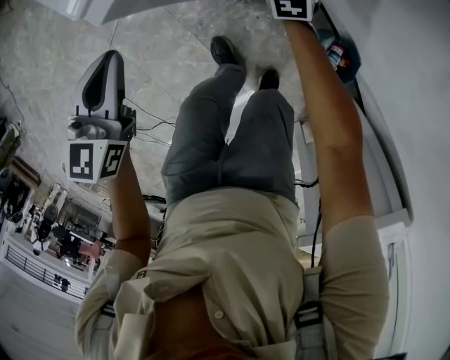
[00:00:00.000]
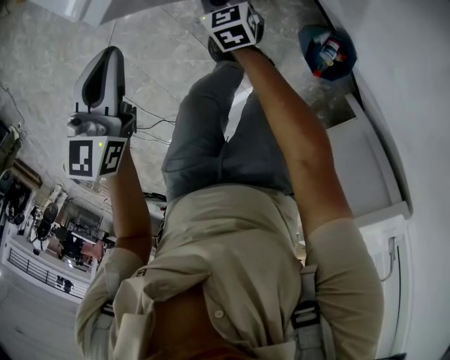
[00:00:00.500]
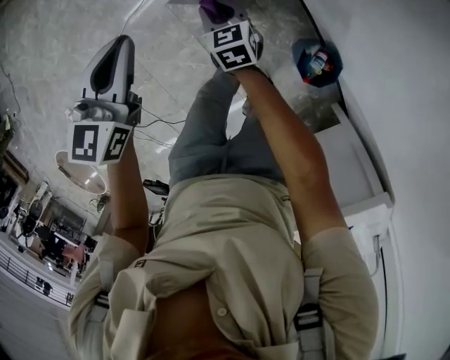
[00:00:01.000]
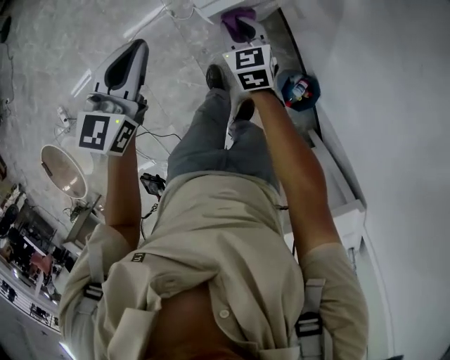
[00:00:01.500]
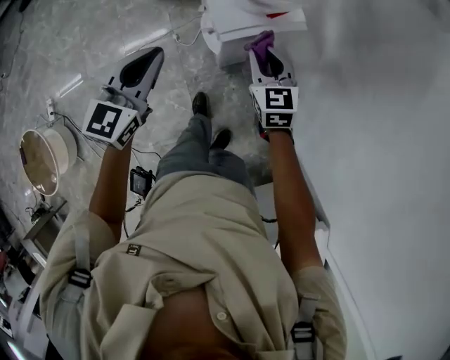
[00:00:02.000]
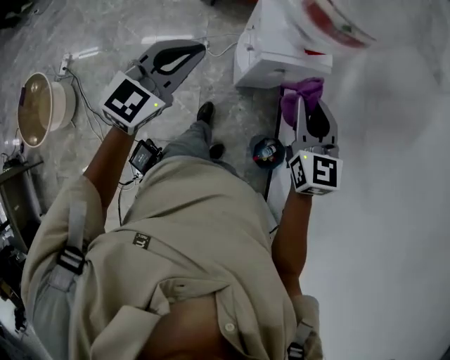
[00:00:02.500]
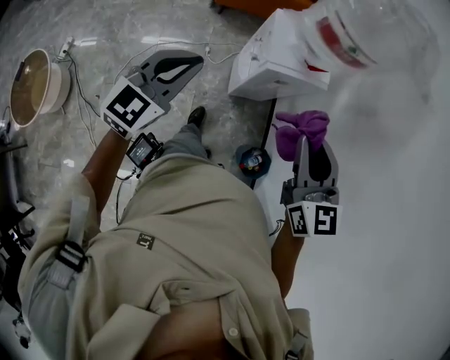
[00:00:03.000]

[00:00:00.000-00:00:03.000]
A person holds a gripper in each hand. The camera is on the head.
00:00:00.000 to 00:00:01.500: The right gripper goes some 30 cm upward and to the left. Meanwhile the left gripper is displaced upward by some 20 cm.
00:00:01.500 to 00:00:03.000: The right gripper goes roughly 50 cm upward and backward, and turns by about 20 degrees, while the left gripper is displaced upward, backward and to the left by approximately 25 cm.

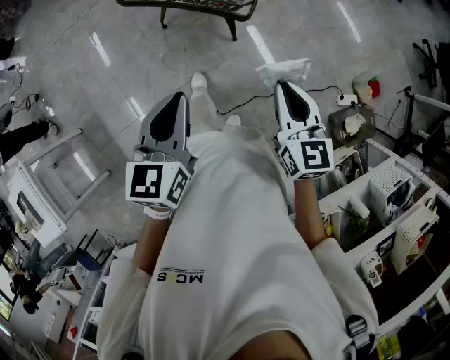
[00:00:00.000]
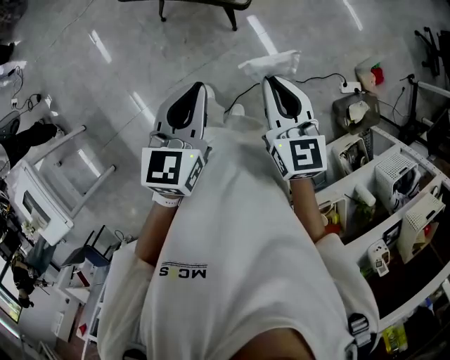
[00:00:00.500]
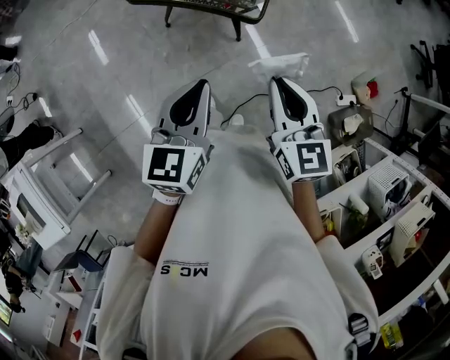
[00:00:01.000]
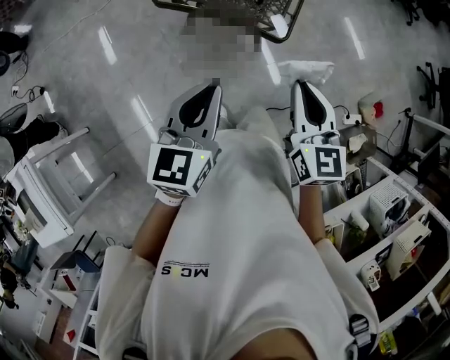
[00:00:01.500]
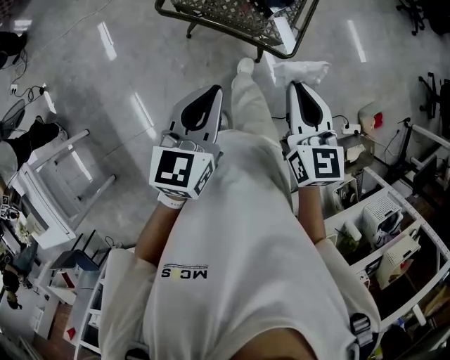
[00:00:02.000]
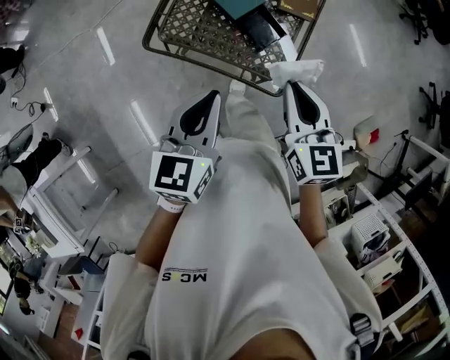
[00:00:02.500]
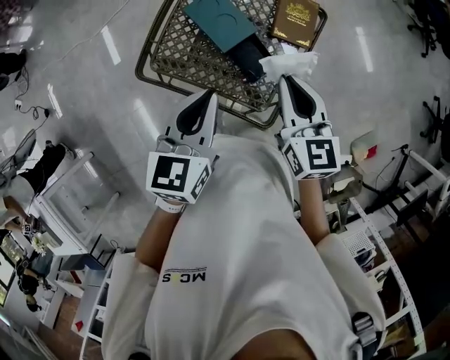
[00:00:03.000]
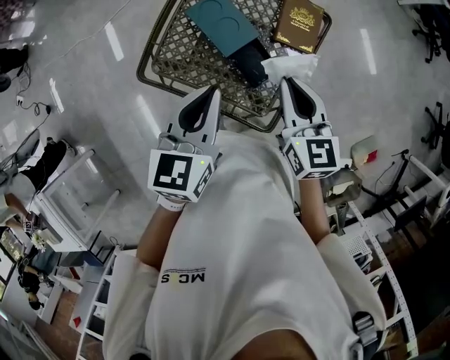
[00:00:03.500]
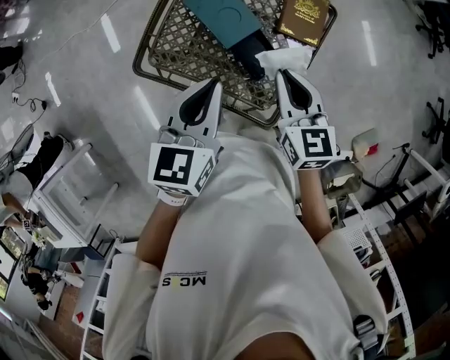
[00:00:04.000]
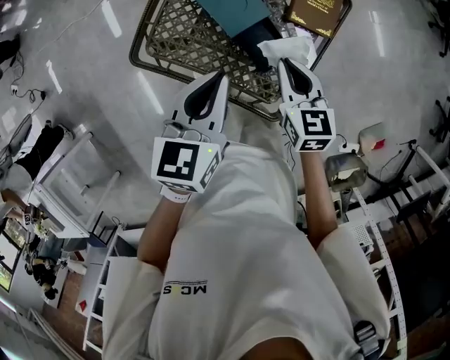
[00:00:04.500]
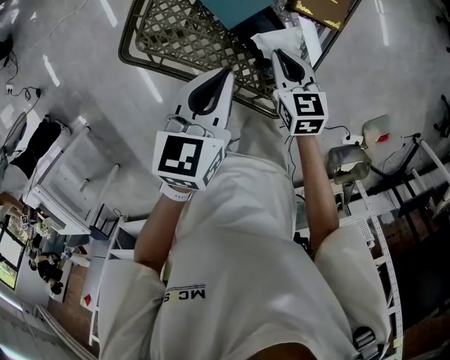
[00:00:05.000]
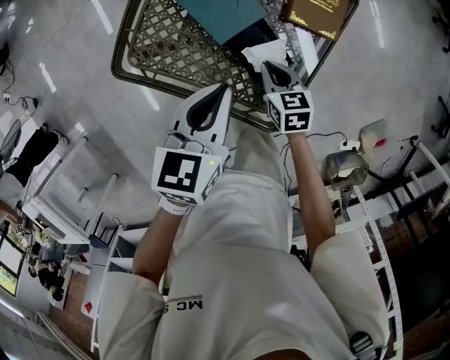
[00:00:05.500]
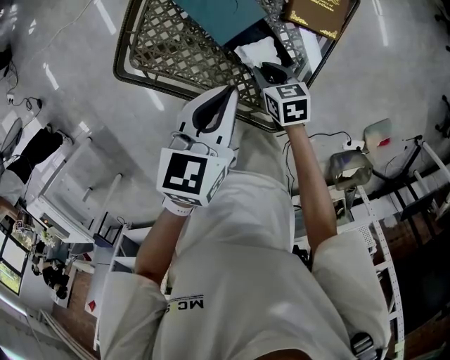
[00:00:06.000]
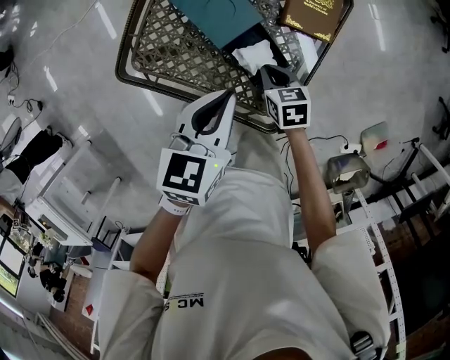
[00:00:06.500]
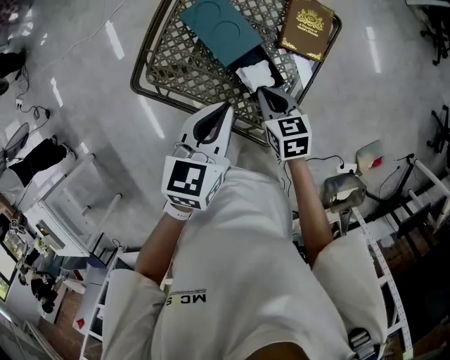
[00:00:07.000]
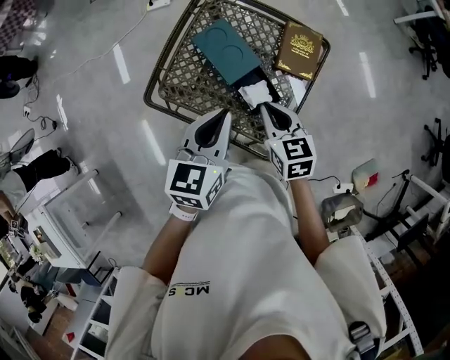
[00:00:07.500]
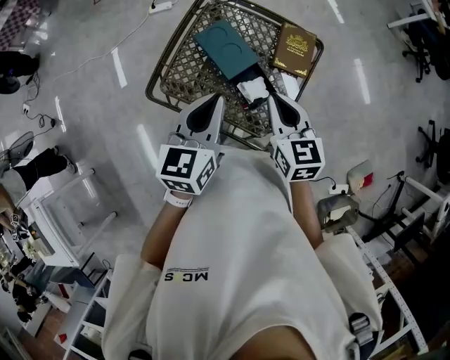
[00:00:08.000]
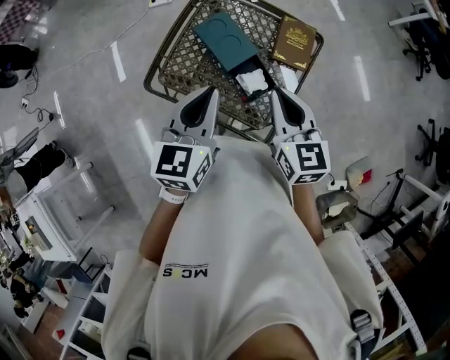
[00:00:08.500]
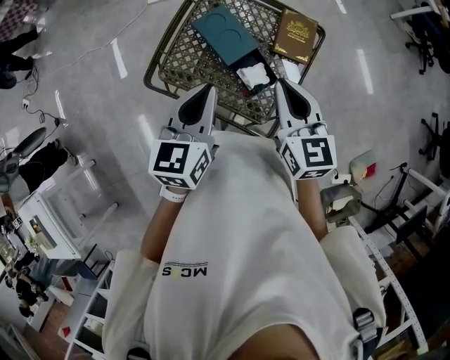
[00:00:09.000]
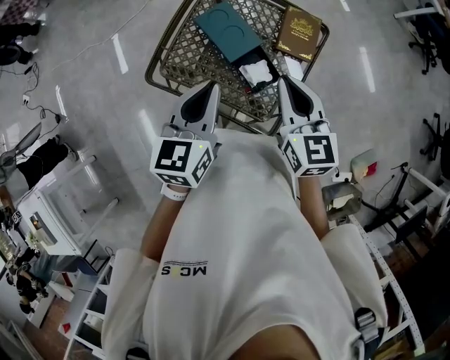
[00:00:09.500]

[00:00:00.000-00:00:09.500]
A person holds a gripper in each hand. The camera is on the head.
00:00:00.000 to 00:00:02.000: Both grippers move forward and to the left, roughly 20 cm.
00:00:02.000 to 00:00:04.000: Both grippers move forward, roughly 35 cm.
00:00:04.000 to 00:00:05.500: The left gripper goes roughly 10 cm downward. Meanwhile the right gripper is displaced downward by some 25 cm, and swivels about 20 degrees.
00:00:05.500 to 00:00:07.500: The right gripper moves upward, roughly 20 cm; the left gripper heads upward, covering approximately 10 cm.
00:00:07.500 to 00:00:09.500: The right gripper is displaced upward by approximately 10 cm.

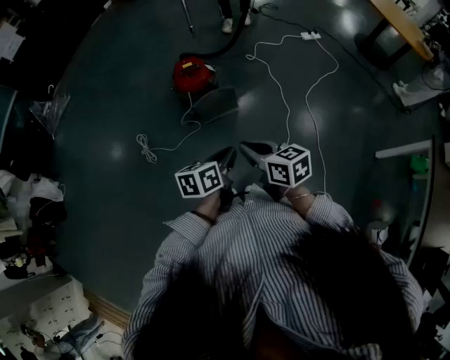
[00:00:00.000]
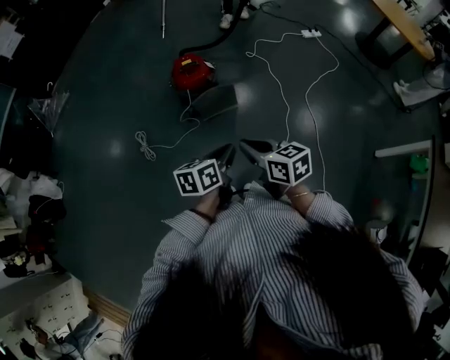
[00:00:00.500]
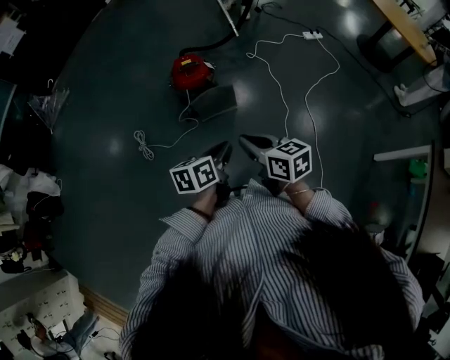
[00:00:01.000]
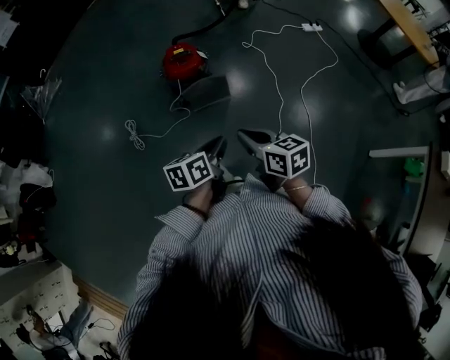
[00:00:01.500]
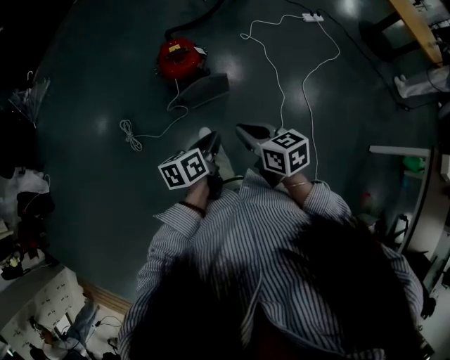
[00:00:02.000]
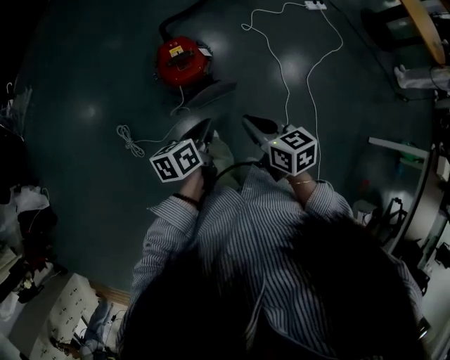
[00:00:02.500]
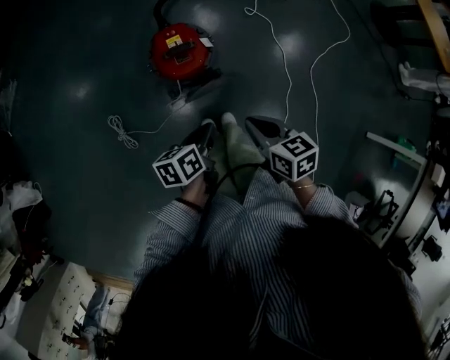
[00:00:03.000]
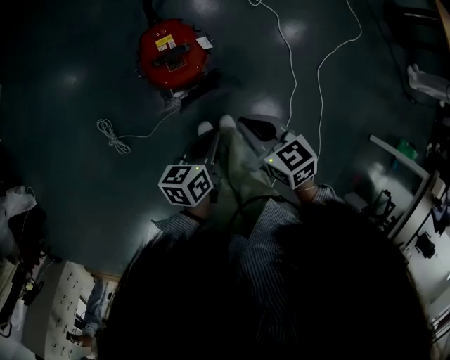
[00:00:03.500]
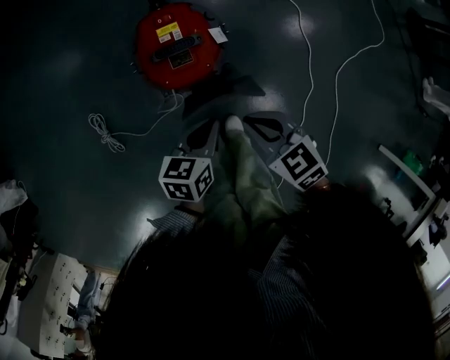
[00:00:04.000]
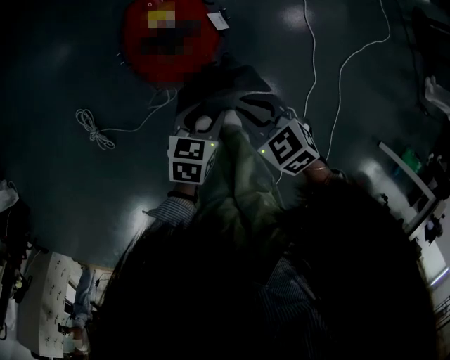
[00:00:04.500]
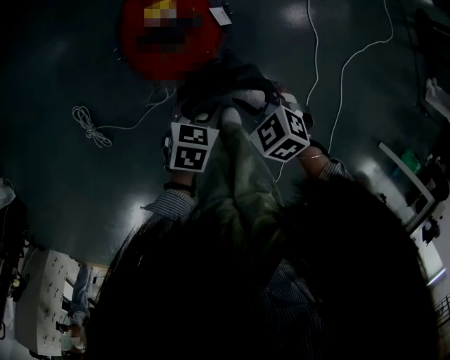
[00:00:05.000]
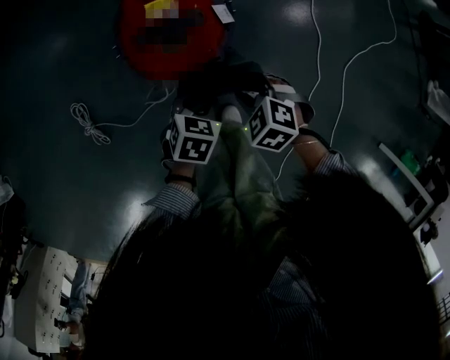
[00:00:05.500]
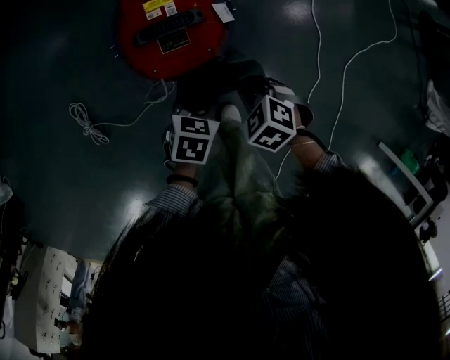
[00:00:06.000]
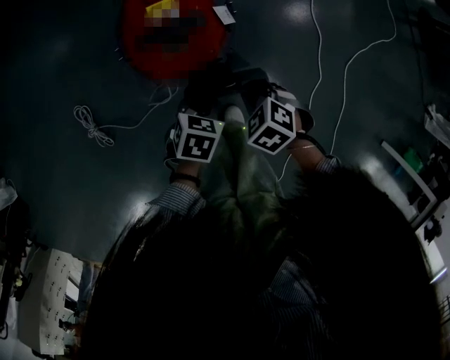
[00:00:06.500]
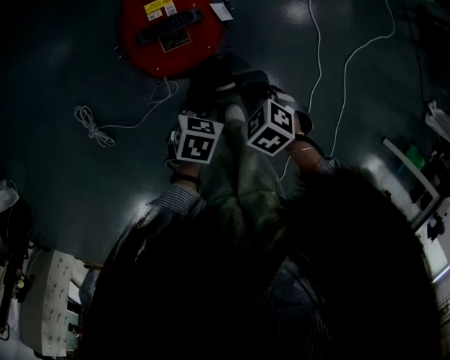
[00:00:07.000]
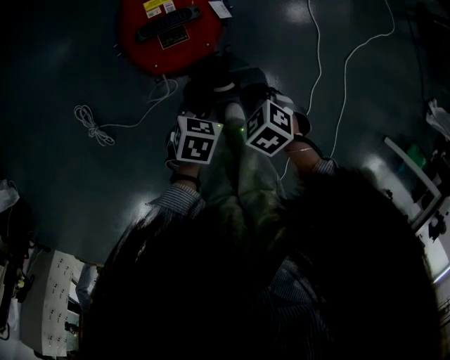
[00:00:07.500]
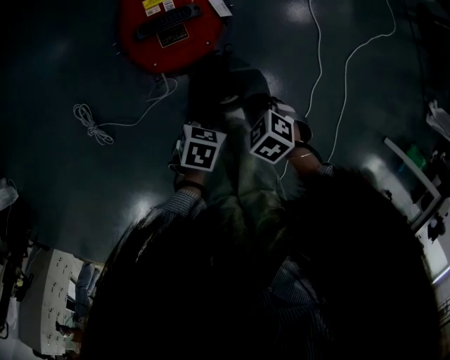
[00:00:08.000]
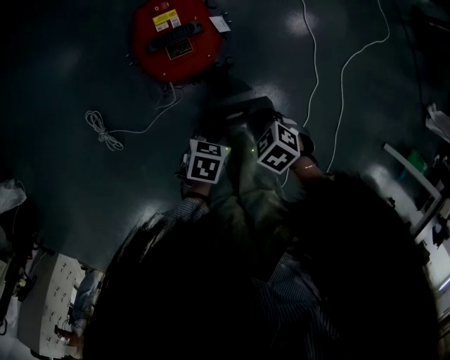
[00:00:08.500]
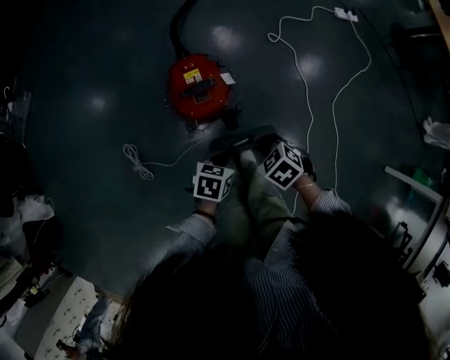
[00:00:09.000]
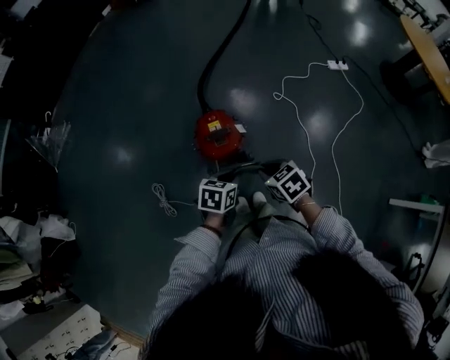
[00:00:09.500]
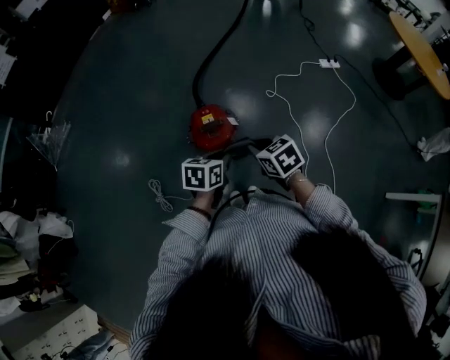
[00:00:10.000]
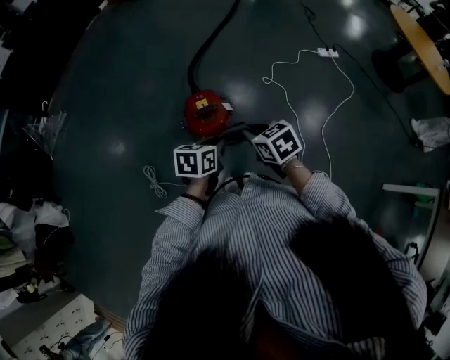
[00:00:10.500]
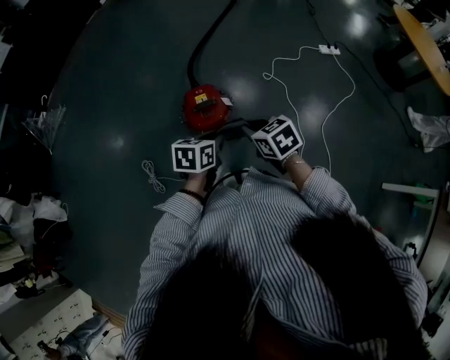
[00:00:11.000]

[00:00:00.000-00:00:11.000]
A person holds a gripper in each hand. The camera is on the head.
00:00:00.000 to 00:00:02.000: The right gripper moves forward, roughly 10 cm, while the left gripper heads forward and downward, covering about 10 cm.
00:00:02.000 to 00:00:03.500: Both grippers travel together forward and downward, some 30 cm.
00:00:03.500 to 00:00:05.500: Both grippers travel together downward, some 30 cm. The right gripper tilts its fingers roughly 30 degrees downward, and opens its fingers. The left gripper changes its angle by about 40 degrees, and opens up.
00:00:05.500 to 00:00:07.500: The left gripper closes its fingers. Meanwhile the right gripper closes up.
00:00:07.500 to 00:00:09.000: The grippers both shift upward by about 20 cm.
00:00:09.000 to 00:00:11.000: The two grippers go approximately 25 cm upward. The right gripper swivels about 30 degrees.

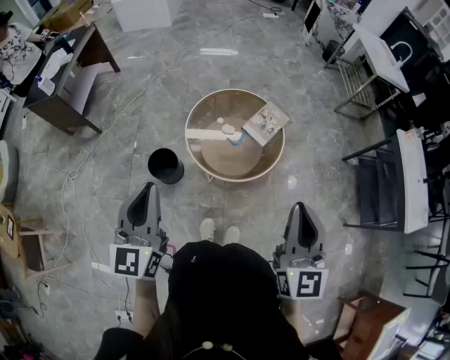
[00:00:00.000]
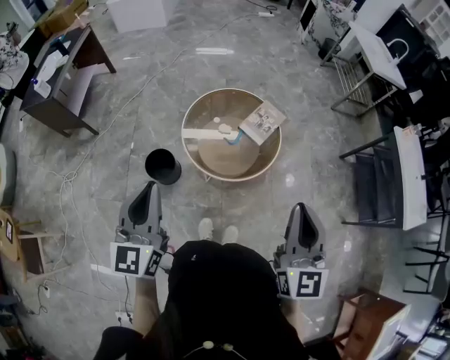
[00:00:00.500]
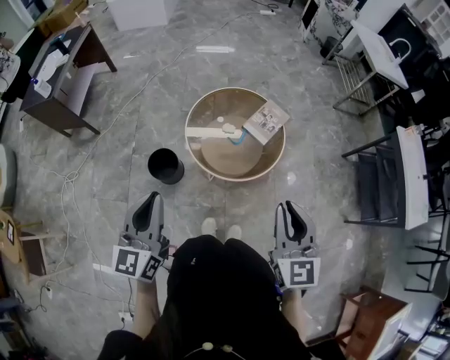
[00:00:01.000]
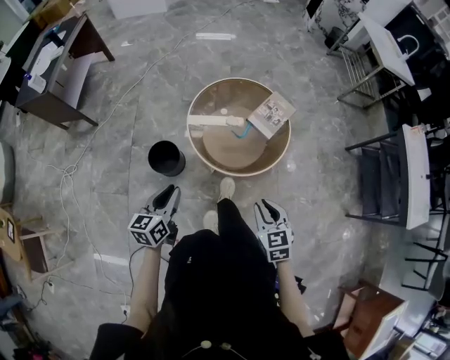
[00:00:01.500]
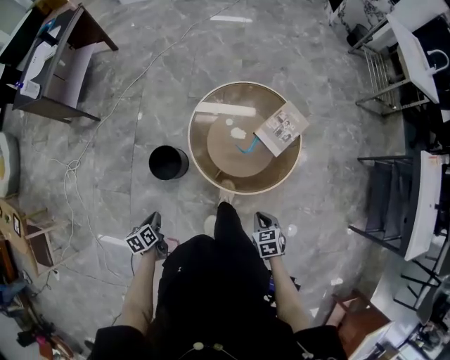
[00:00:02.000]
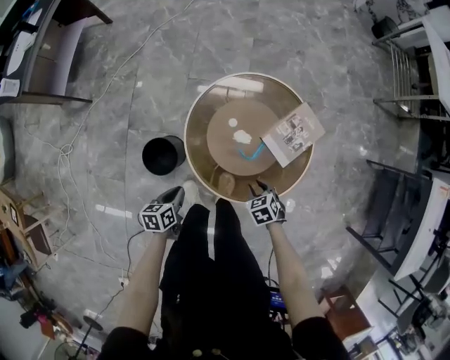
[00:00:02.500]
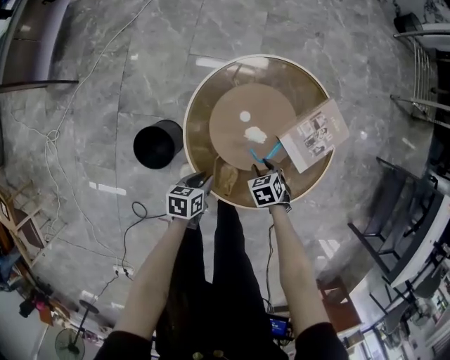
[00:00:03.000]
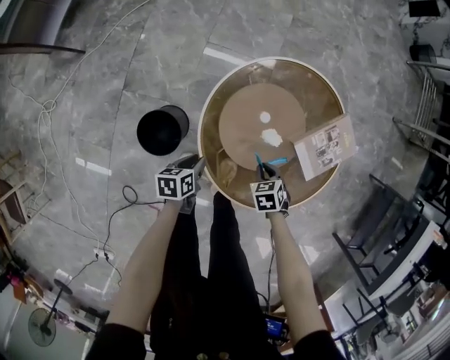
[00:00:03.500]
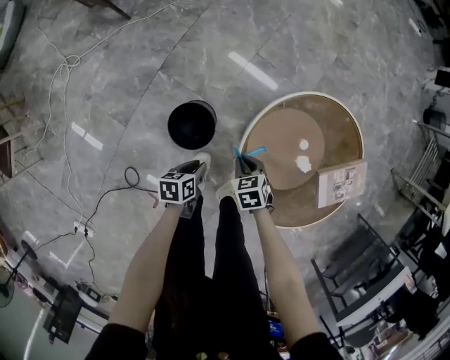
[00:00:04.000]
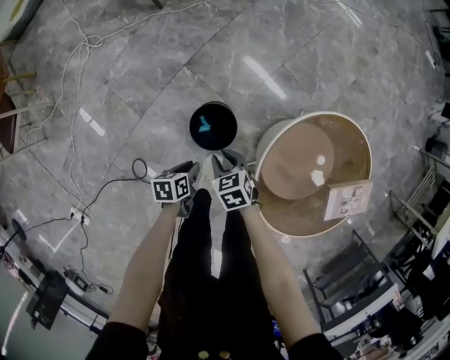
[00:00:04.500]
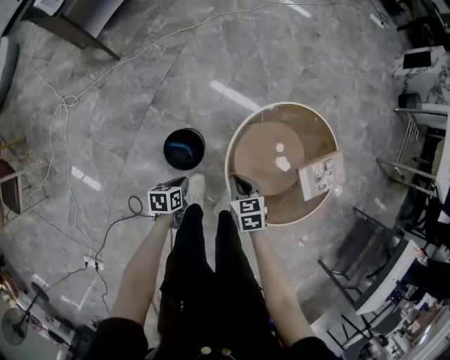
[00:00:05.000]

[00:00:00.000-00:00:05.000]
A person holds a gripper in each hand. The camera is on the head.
00:00:00.000 to 00:00:02.500: Both grippers travel together downward and forward, some 60 cm. The left gripper angles its fingers downward, by approximately 50 degrees; the right gripper tips its fingers downward by about 70 degrees, and opens up.
00:00:02.500 to 00:00:05.000: The right gripper closes up.
